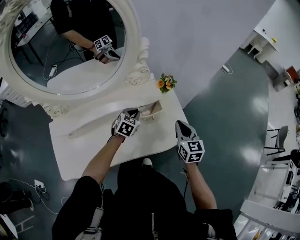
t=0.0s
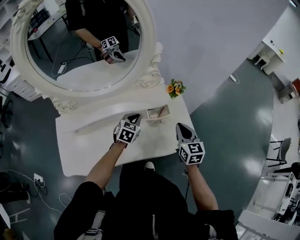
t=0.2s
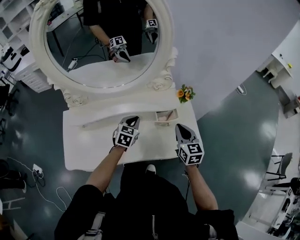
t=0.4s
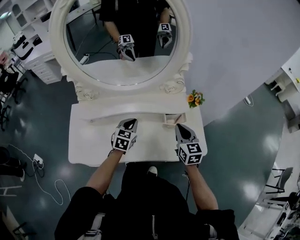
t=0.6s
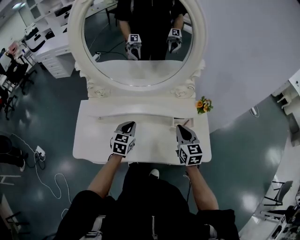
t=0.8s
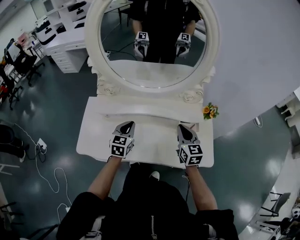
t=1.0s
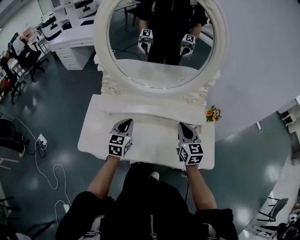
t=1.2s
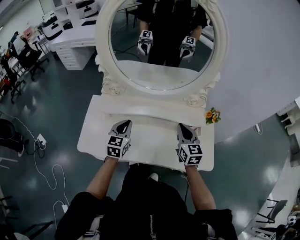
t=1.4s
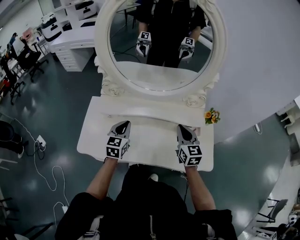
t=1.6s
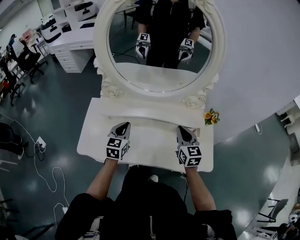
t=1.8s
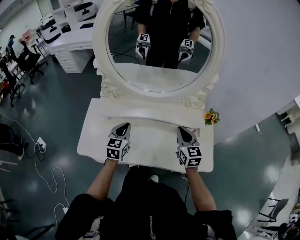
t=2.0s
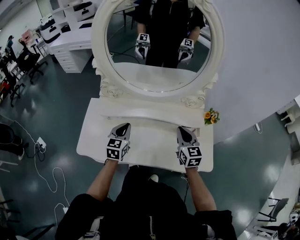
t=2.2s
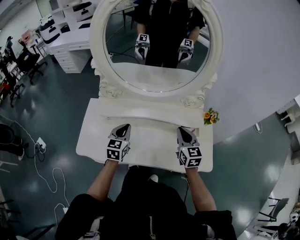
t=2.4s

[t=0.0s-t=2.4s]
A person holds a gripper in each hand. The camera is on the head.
t=0.0s to t=1.2s: The left gripper ends up about 30 cm from where it was, and turns by about 50 degrees, while the right gripper shifts by about 25 cm, and swivels roughly 30 degrees.
t=1.2s to t=2.4s: The grippers stay close to where they were, moving slightly.

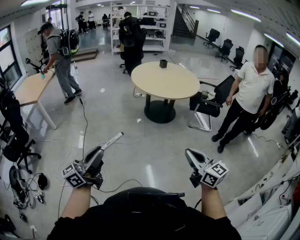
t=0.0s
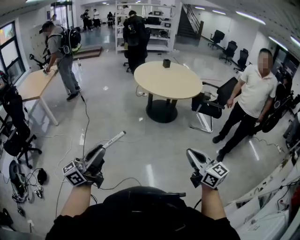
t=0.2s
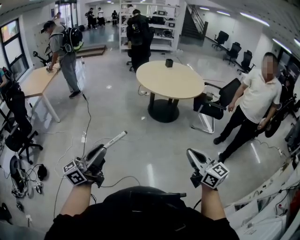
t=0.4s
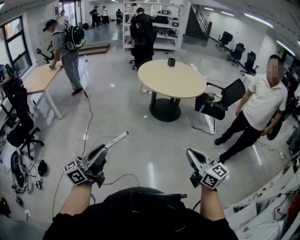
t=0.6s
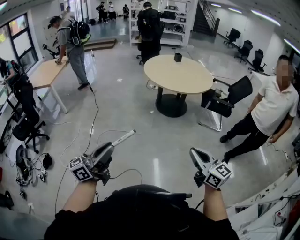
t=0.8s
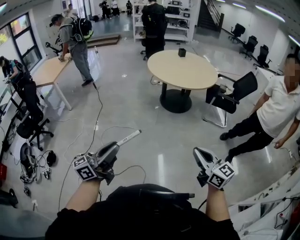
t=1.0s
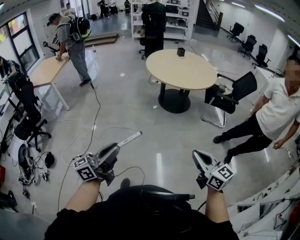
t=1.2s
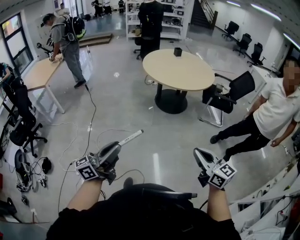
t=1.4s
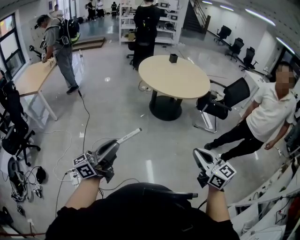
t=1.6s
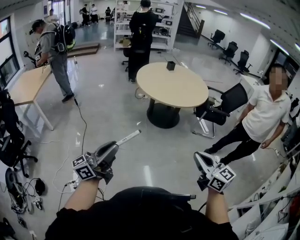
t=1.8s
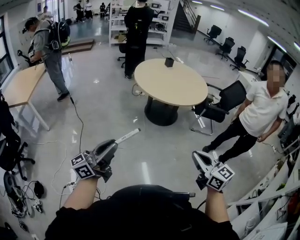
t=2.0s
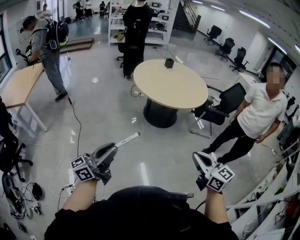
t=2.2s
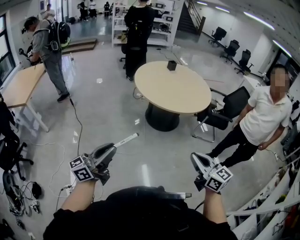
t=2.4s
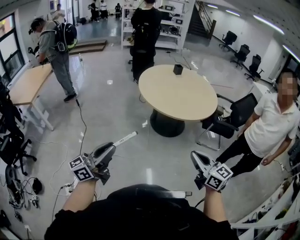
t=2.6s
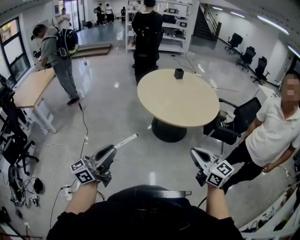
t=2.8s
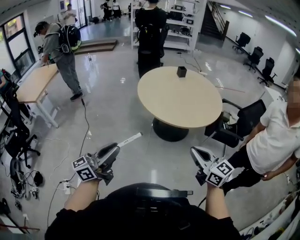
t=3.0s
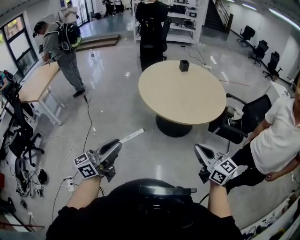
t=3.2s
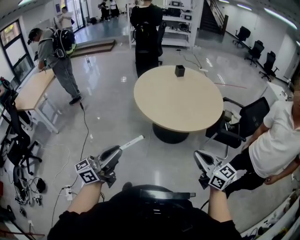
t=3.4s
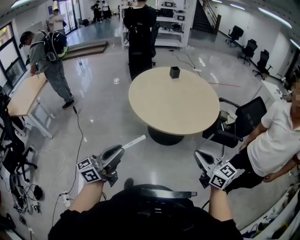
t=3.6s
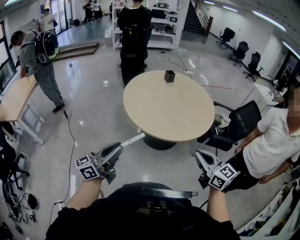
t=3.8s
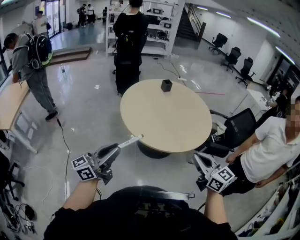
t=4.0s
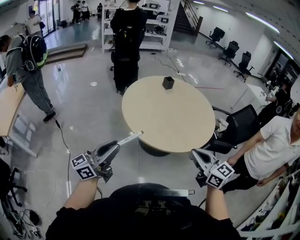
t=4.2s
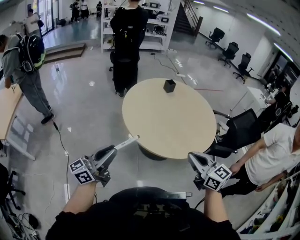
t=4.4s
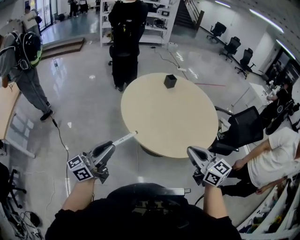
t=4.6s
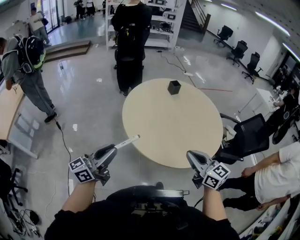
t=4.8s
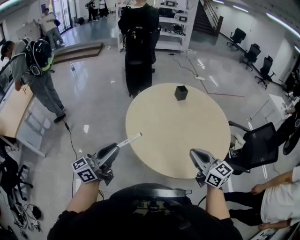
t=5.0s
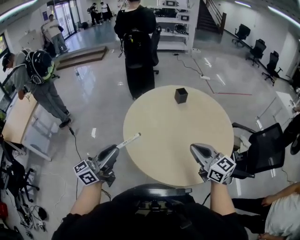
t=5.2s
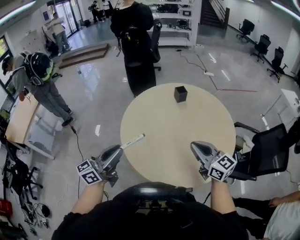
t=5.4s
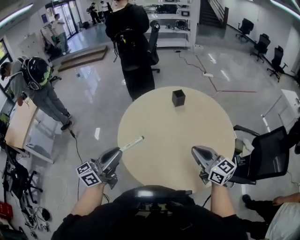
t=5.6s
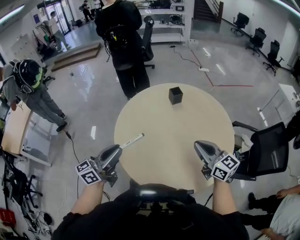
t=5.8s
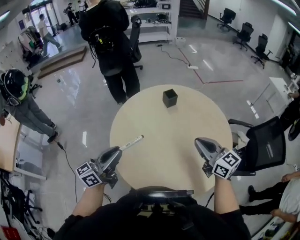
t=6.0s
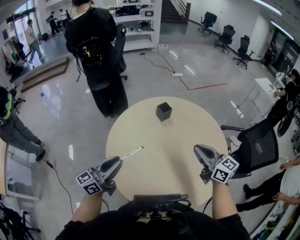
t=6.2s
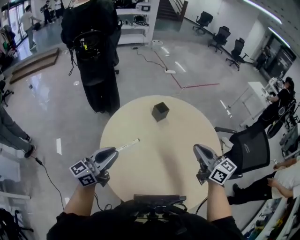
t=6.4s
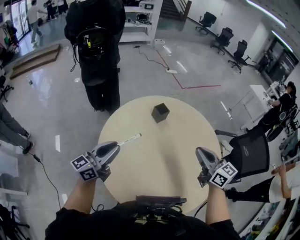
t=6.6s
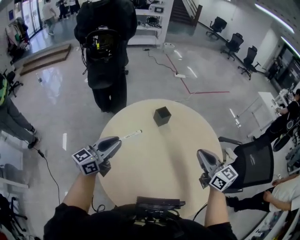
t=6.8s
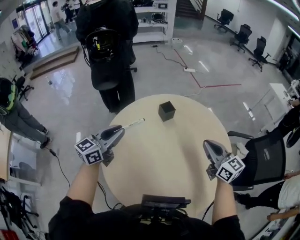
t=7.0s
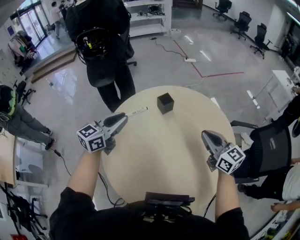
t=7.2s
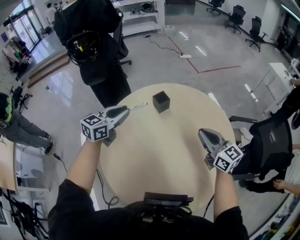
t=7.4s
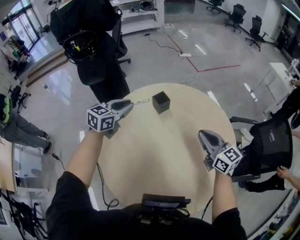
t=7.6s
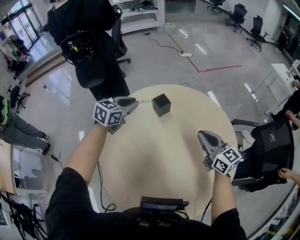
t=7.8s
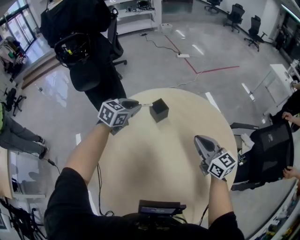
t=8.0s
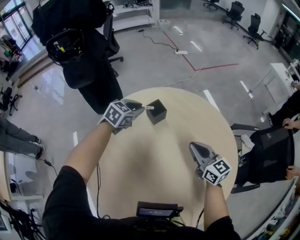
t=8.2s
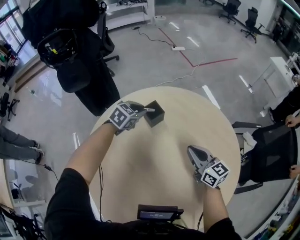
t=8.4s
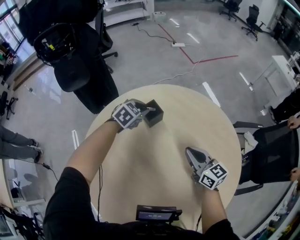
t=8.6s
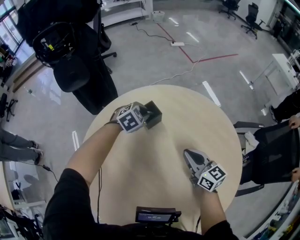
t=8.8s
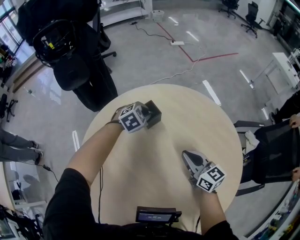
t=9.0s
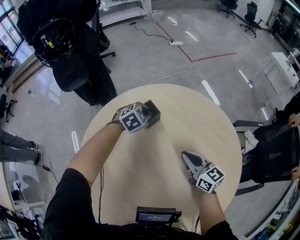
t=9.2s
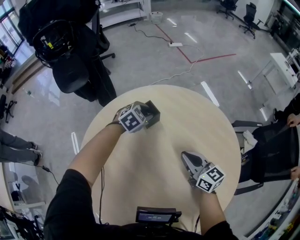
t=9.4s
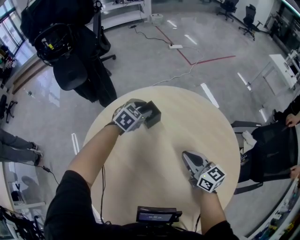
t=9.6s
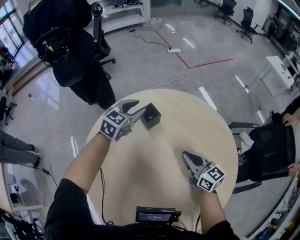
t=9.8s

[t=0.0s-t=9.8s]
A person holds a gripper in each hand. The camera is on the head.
t=0.0s to t=1.4s: The left gripper heads to the right, covering approximately 5 cm. The right gripper ends up some 5 cm from where it was.
t=1.4s to t=2.8s: The grippers both shift forward by approximately 35 cm.
t=2.8s to t=4.2s: Both grippers move forward, some 30 cm.
t=4.2s to t=5.6s: The two grippers go roughly 35 cm forward and to the right.
t=5.6s to t=7.0s: The left gripper goes some 35 cm forward, and turns by some 20 degrees. Meanwhile the right gripper travels forward by roughly 20 cm.
t=7.0s to t=8.4s: The right gripper heads downward and forward, covering roughly 20 cm; the left gripper shifts approximately 40 cm forward, downward and to the right, and angles its fingers downward, by roughly 40 degrees.
t=8.4s to t=9.8s: The left gripper moves upward, roughly 10 cm, and opens its fingers.

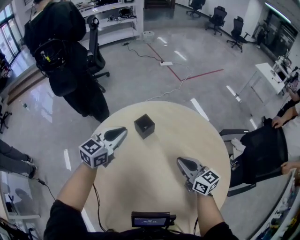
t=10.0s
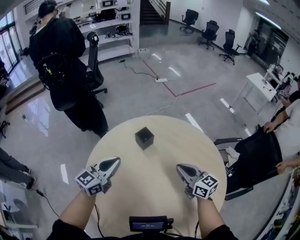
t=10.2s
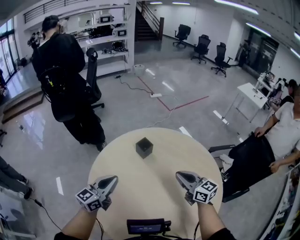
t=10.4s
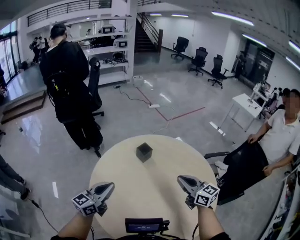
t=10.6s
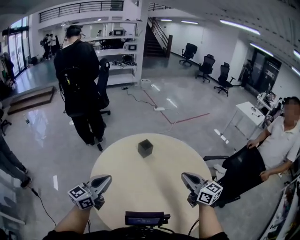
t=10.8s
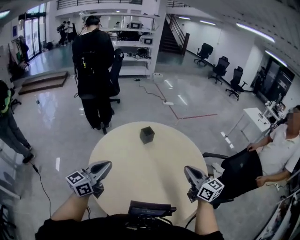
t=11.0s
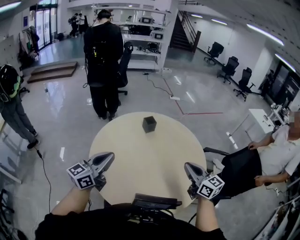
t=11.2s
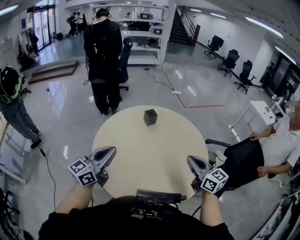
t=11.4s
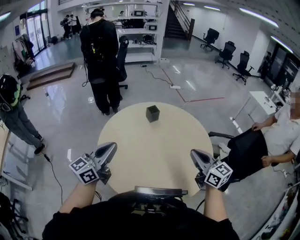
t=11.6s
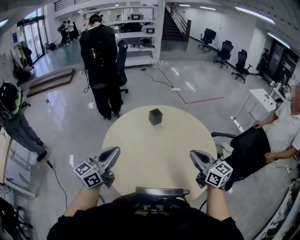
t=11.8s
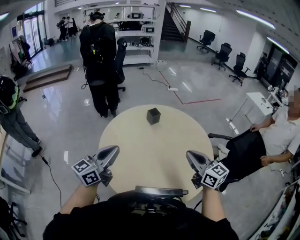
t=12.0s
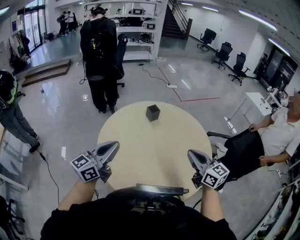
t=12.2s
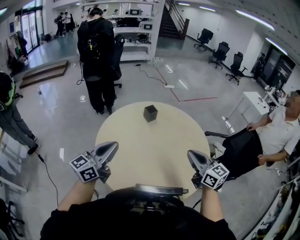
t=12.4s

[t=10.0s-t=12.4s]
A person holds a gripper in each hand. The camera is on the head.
t=10.0s to t=11.2s: The left gripper travels backward by some 40 cm, and changes its angle by some 30 degrees. Meanwhile the right gripper is displaced backward and upward by roughly 30 cm.
t=11.2s to t=12.4s: The right gripper goes approximately 5 cm to the left.

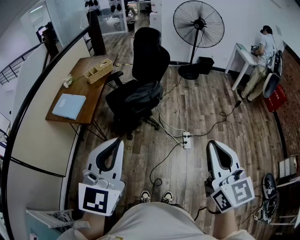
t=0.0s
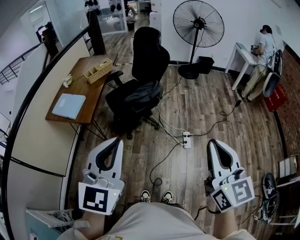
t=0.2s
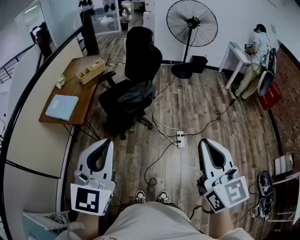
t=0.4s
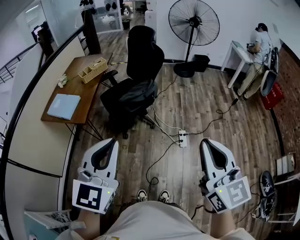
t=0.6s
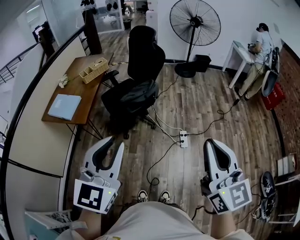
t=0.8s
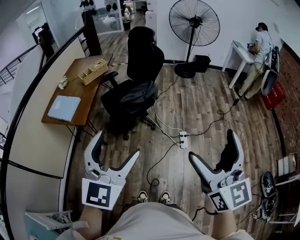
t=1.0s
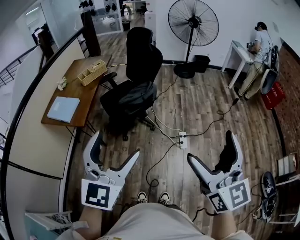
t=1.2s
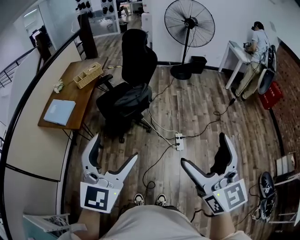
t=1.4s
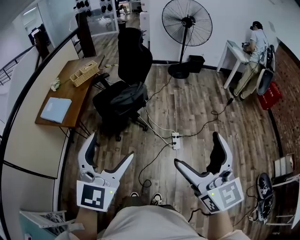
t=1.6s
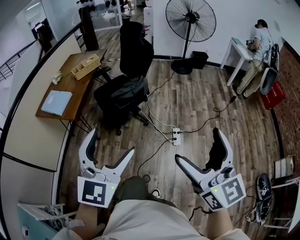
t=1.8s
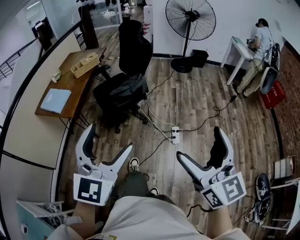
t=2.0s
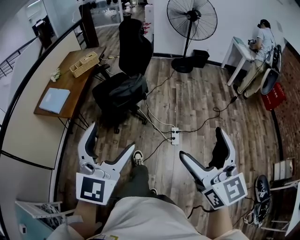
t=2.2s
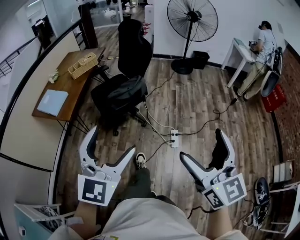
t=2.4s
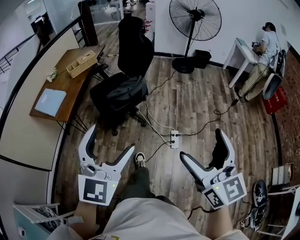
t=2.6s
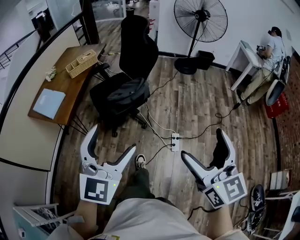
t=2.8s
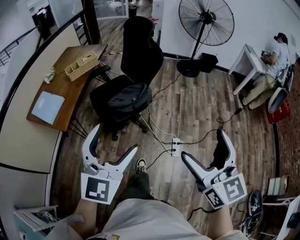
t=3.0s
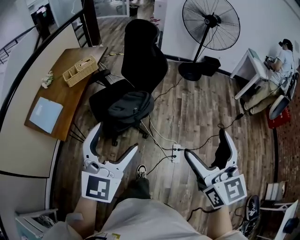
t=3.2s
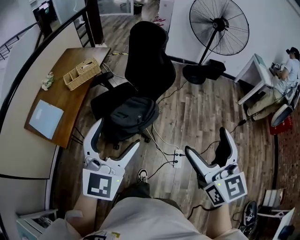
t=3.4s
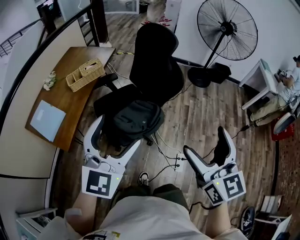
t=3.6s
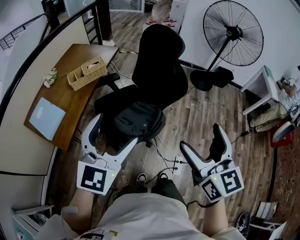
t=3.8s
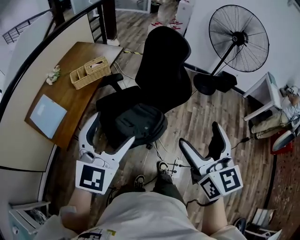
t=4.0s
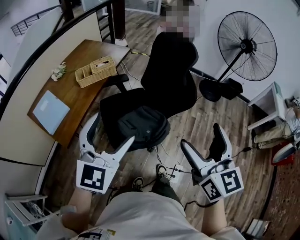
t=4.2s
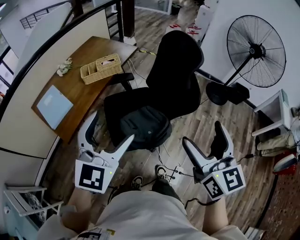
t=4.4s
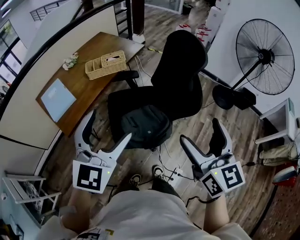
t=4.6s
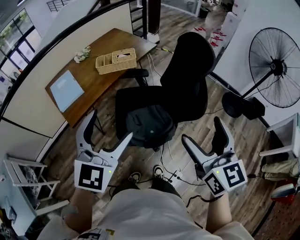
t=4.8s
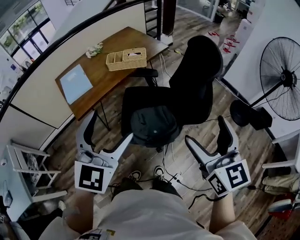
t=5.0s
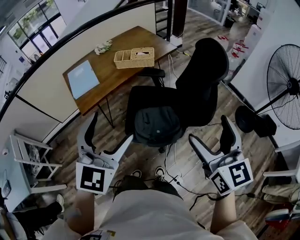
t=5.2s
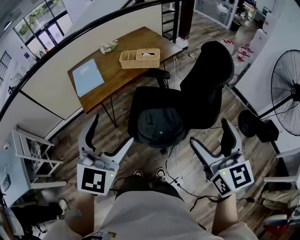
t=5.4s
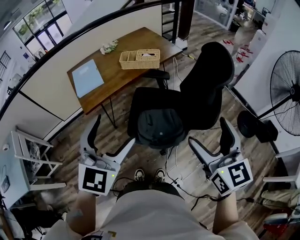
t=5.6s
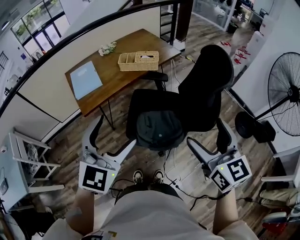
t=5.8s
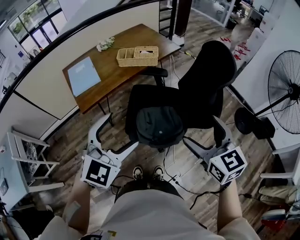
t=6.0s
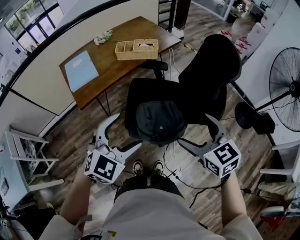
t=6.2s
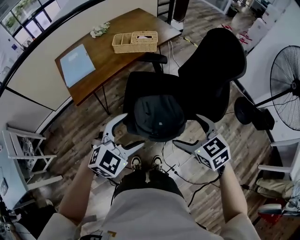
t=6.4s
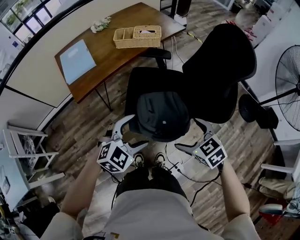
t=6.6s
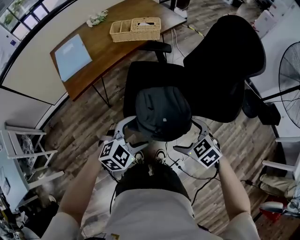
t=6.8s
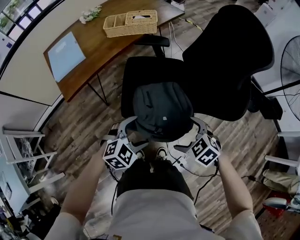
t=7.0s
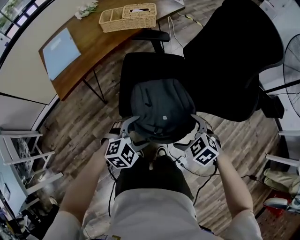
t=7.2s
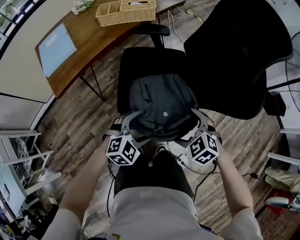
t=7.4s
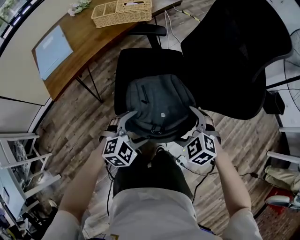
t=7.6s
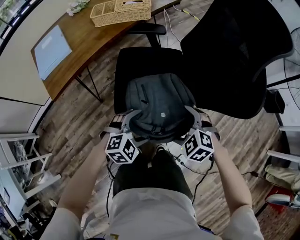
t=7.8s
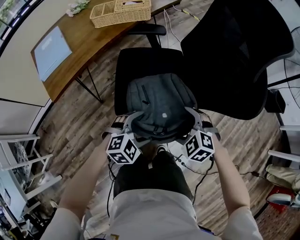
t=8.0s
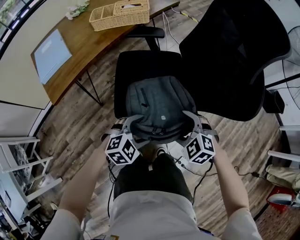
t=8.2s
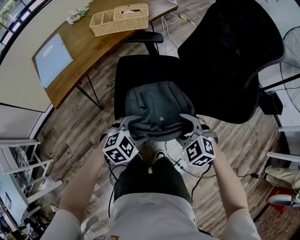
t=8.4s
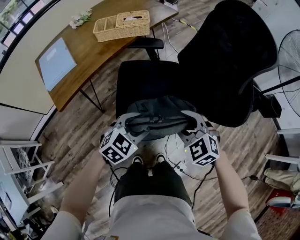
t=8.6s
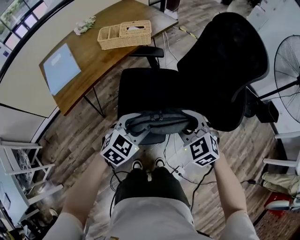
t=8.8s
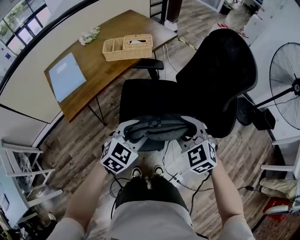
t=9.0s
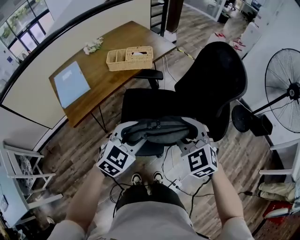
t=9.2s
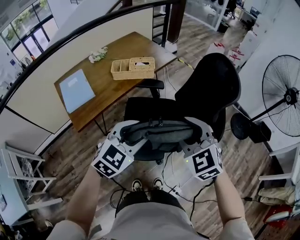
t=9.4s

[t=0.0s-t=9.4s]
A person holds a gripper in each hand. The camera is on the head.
t=0.0s to t=1.6s: The left gripper travels to the right by some 10 cm, and opens its fingers. Meanwhile the right gripper goes some 5 cm to the right, and opens its fingers.
t=1.6s to t=3.2s: Both grippers travel together forward, some 30 cm.
t=3.2s to t=4.8s: The left gripper changes place by roughly 20 cm, and swivels roughly 30 degrees. The right gripper shifts by some 35 cm, and rotates roughly 30 degrees.
t=4.8s to t=6.2s: Both grippers move downward, some 10 cm. The left gripper turns by about 20 degrees, while the right gripper changes its angle by some 40 degrees.
t=6.2s to t=7.8s: The grippers both shift downward by roughly 35 cm. The right gripper turns by some 40 degrees, while the left gripper swivels some 30 degrees.
t=7.8s to t=9.4s: The grippers both shift upward by about 35 cm. The right gripper swivels approximately 30 degrees, and closes up, while the left gripper changes its angle by about 30 degrees, and closes up.
